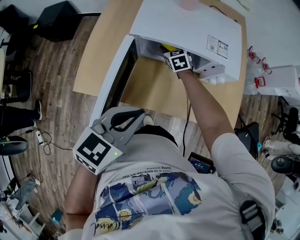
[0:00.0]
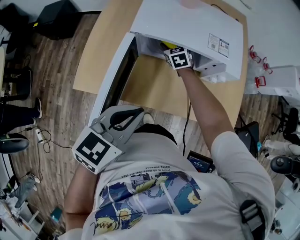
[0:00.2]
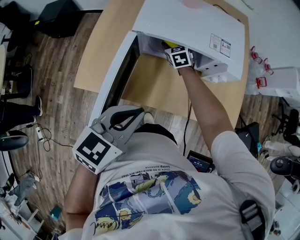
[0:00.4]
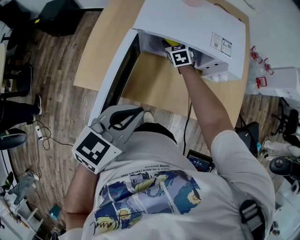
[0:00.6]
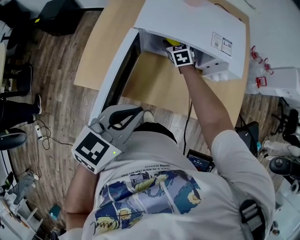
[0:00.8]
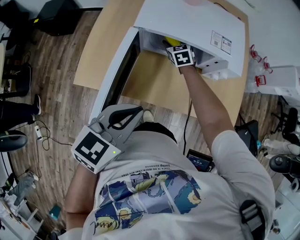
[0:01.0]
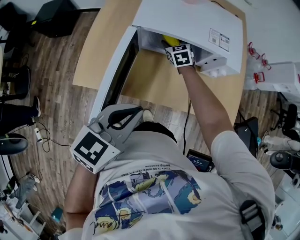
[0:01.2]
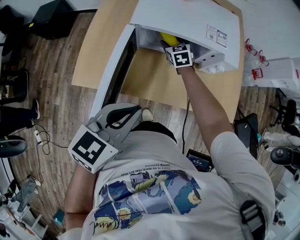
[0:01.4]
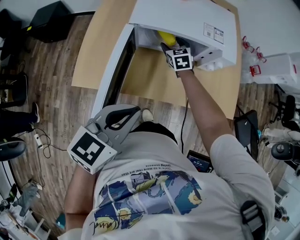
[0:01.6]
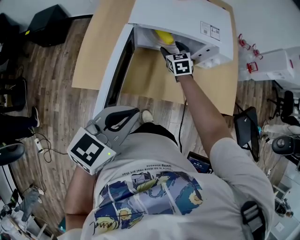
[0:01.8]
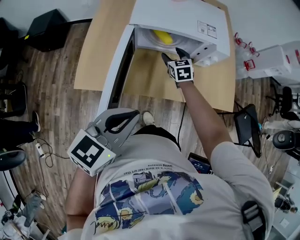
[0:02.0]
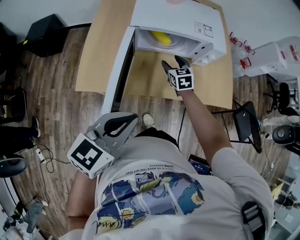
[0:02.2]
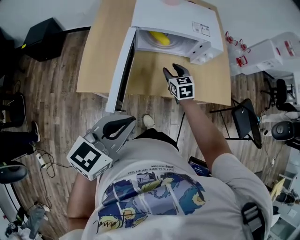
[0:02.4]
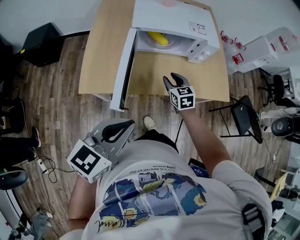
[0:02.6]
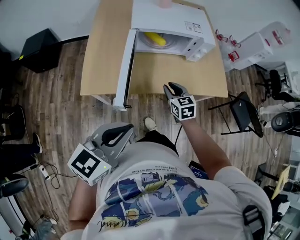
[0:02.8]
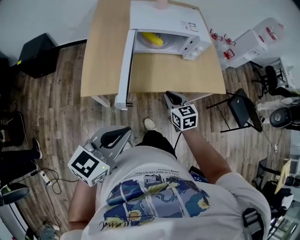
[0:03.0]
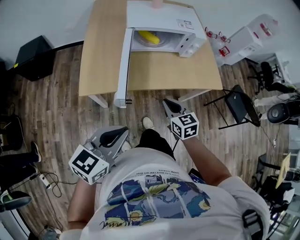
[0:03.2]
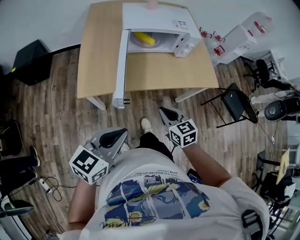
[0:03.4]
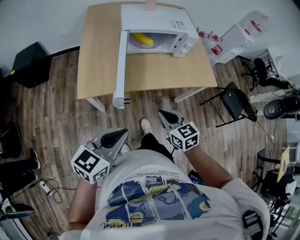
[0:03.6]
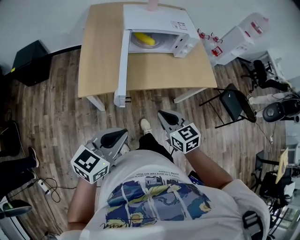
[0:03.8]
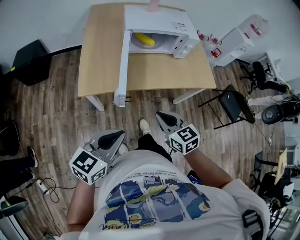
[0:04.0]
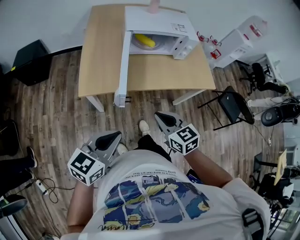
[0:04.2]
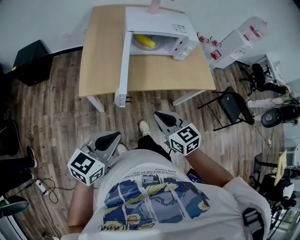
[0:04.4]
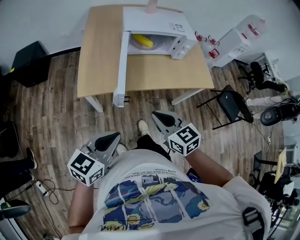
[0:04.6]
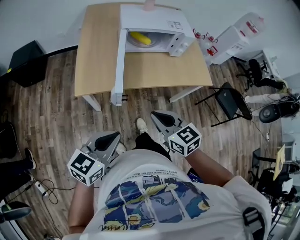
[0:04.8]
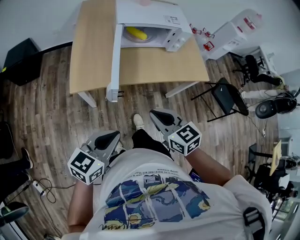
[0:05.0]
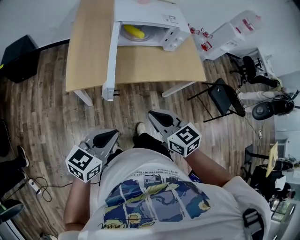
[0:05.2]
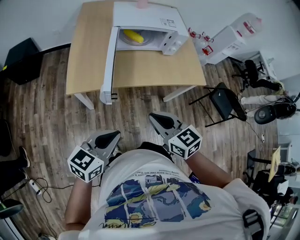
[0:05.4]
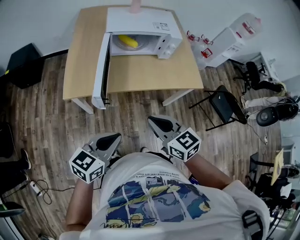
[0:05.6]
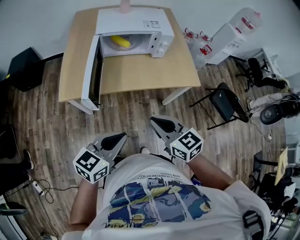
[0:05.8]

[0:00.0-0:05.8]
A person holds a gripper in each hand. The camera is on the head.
0:00.0 to 0:01.4: The grippers make only small movements.
0:01.4 to 0:02.8: The left gripper moves backward, about 15 cm. Meanwhile the right gripper moves backward, some 30 cm, and closes its fingers.
0:02.8 to 0:04.4: The left gripper heads backward, downward and to the left, covering approximately 10 cm. Meanwhile the right gripper is displaced backward and upward by roughly 25 cm.
0:04.4 to 0:05.8: The two grippers go approximately 15 cm to the right.

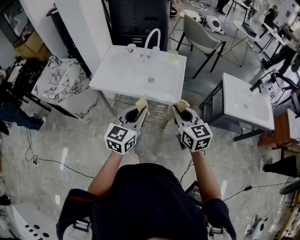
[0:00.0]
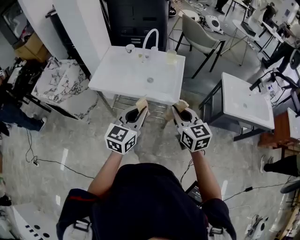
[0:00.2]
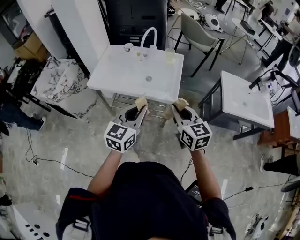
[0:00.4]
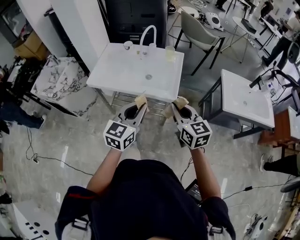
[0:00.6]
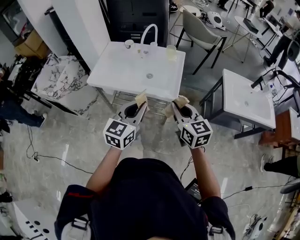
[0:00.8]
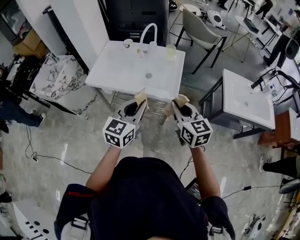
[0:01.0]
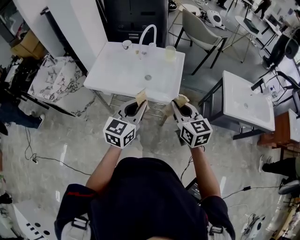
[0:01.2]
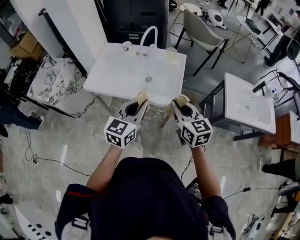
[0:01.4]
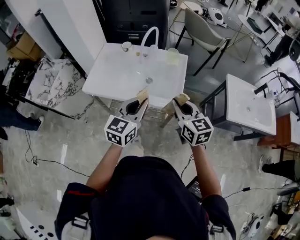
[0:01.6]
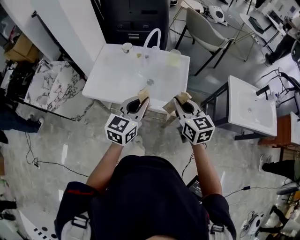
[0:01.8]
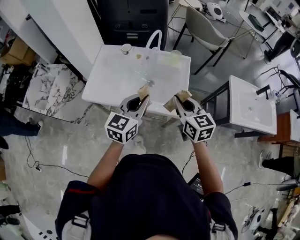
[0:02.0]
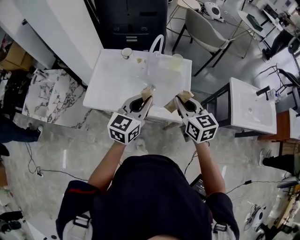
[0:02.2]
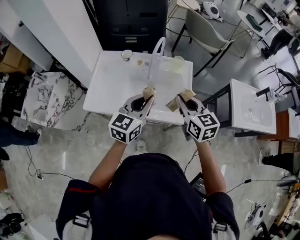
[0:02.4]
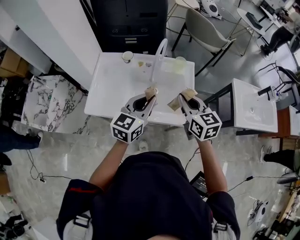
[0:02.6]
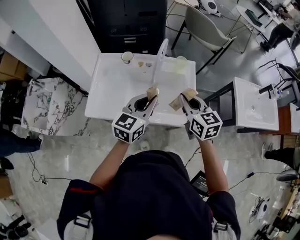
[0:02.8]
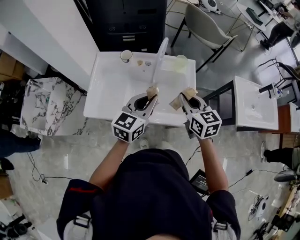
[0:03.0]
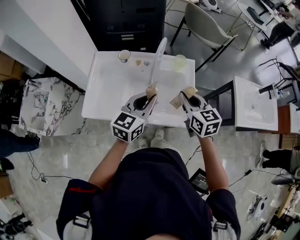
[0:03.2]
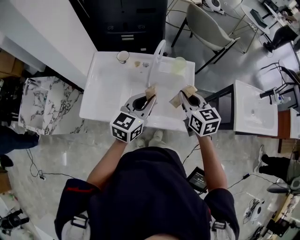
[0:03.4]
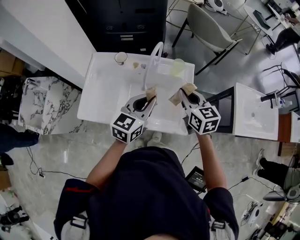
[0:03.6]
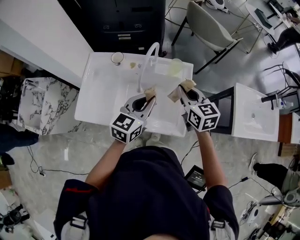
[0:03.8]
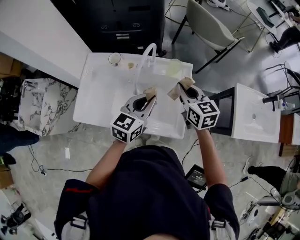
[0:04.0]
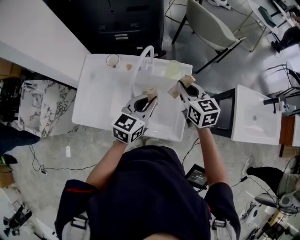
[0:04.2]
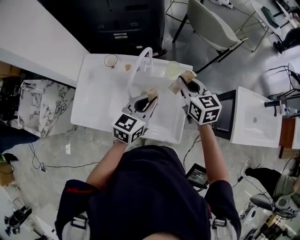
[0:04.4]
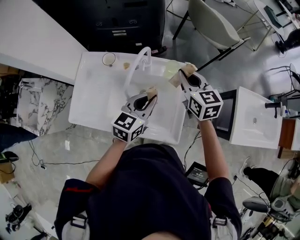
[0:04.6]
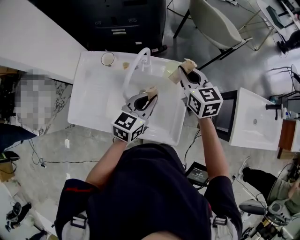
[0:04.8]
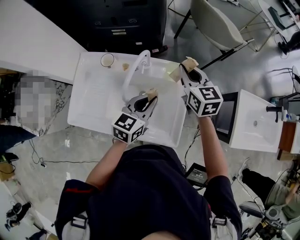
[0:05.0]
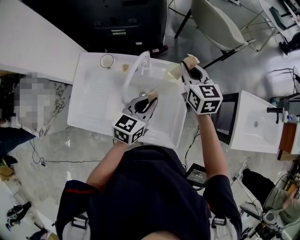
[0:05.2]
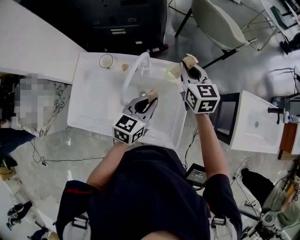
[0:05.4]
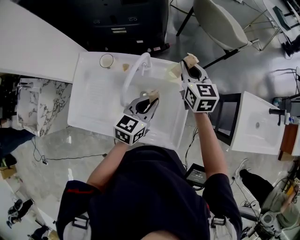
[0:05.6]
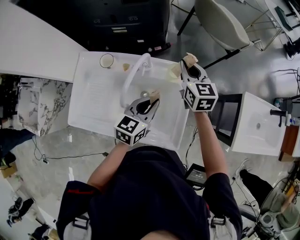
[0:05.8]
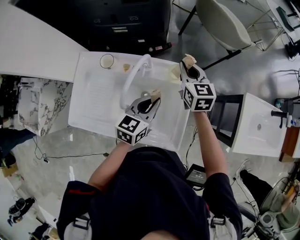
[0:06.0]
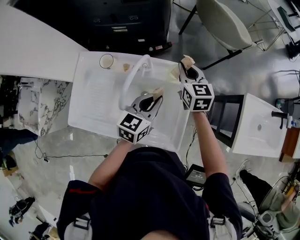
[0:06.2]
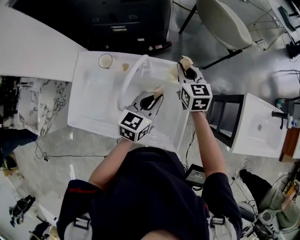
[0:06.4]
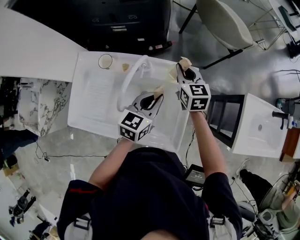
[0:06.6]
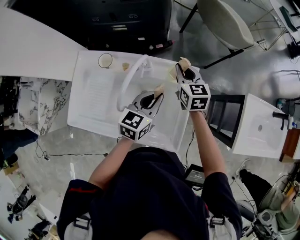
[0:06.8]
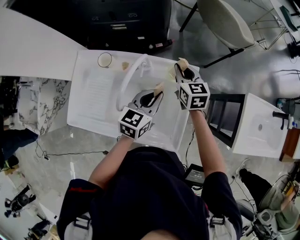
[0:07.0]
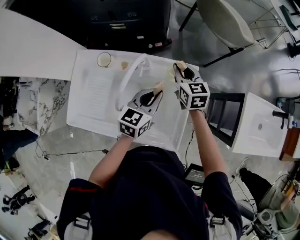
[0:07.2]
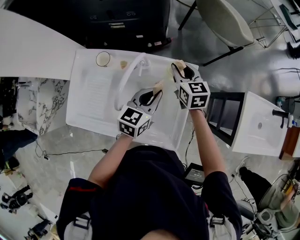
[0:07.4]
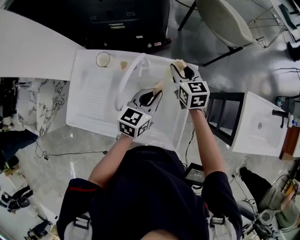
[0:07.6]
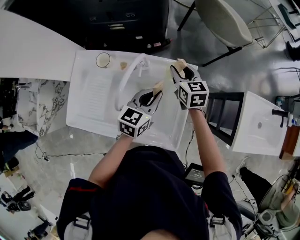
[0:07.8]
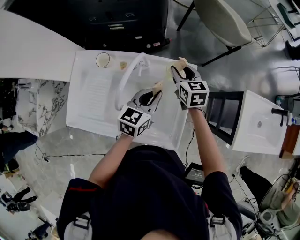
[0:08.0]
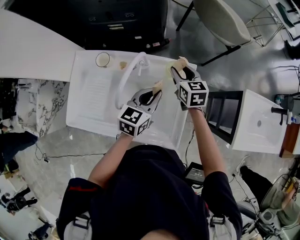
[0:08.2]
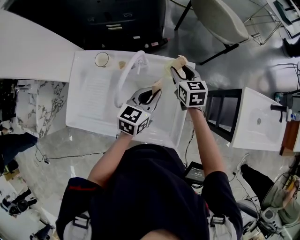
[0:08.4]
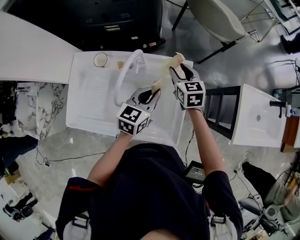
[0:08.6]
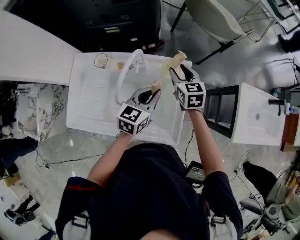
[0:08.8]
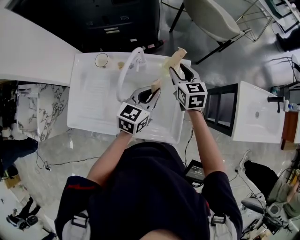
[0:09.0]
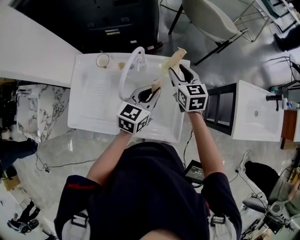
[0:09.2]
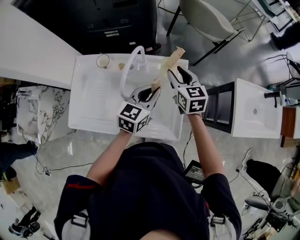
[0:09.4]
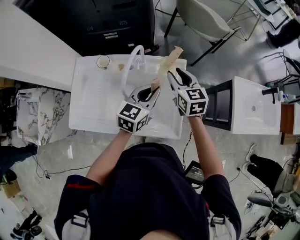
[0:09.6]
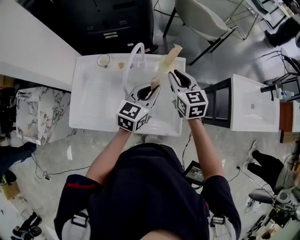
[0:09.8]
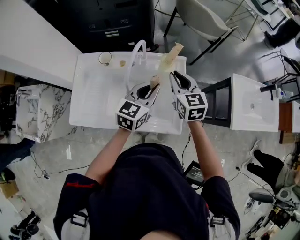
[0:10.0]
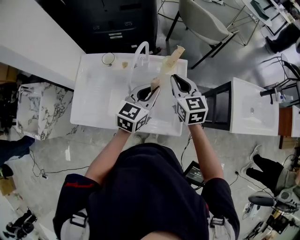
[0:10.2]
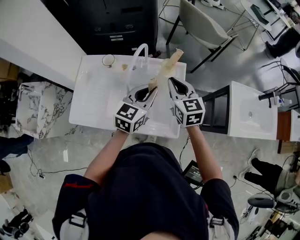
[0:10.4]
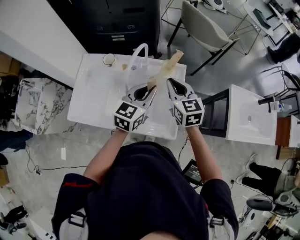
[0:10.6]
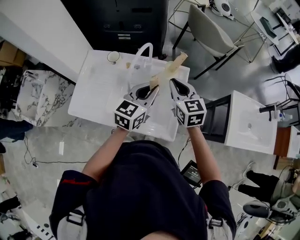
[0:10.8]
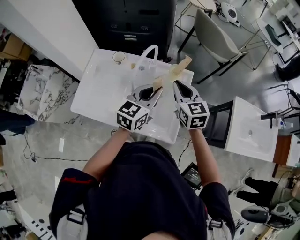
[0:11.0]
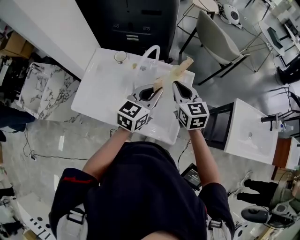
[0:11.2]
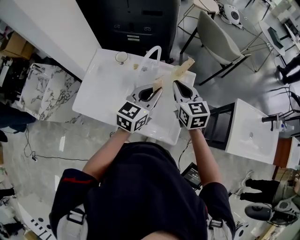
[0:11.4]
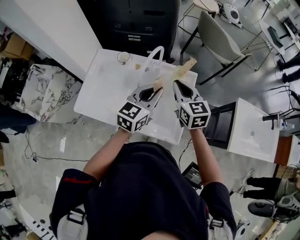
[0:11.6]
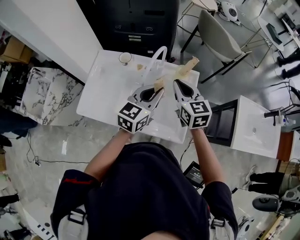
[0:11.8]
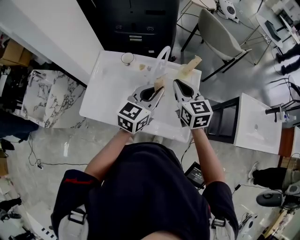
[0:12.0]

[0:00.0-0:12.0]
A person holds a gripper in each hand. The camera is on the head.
0:00.0 to 0:01.6: Both grippers travel together forward, about 10 cm.
0:01.6 to 0:03.0: The grippers both shift forward and to the left by about 20 cm.
0:03.0 to 0:04.4: The right gripper moves forward, some 20 cm; the left gripper goes approximately 15 cm forward, to the right and downward.
0:04.4 to 0:06.0: The left gripper goes approximately 10 cm downward and forward. Meanwhile the right gripper is displaced forward and downward by approximately 15 cm.
0:06.0 to 0:07.6: The right gripper moves downward, roughly 5 cm, and opens.
0:07.6 to 0:09.0: The right gripper shifts by roughly 5 cm.
0:09.0 to 0:10.4: The right gripper is displaced backward and upward by about 15 cm, and closes. Meanwhile the left gripper goes roughly 10 cm upward and backward.
0:10.4 to 0:12.0: The two grippers go about 5 cm to the left.

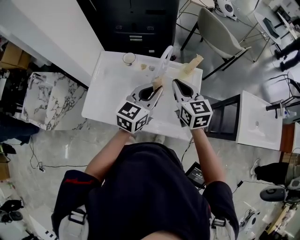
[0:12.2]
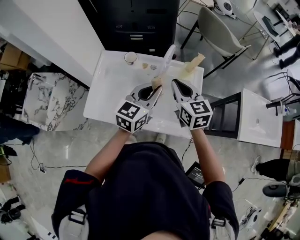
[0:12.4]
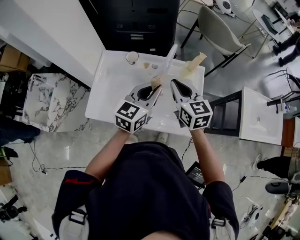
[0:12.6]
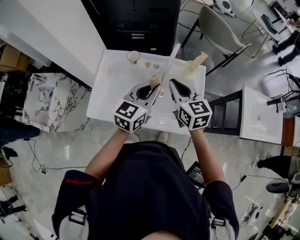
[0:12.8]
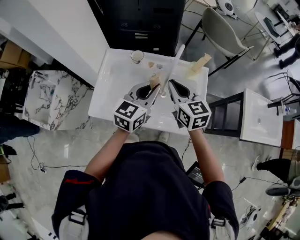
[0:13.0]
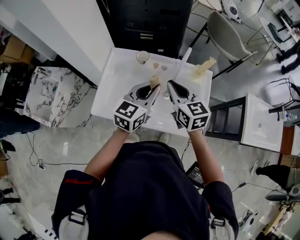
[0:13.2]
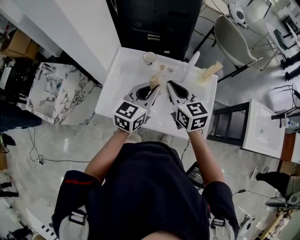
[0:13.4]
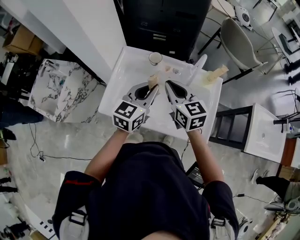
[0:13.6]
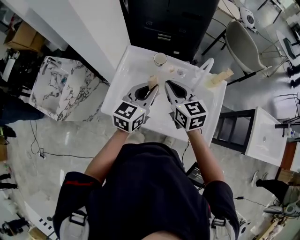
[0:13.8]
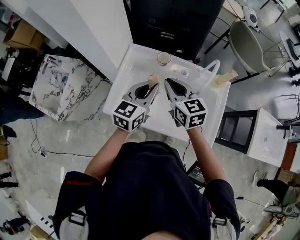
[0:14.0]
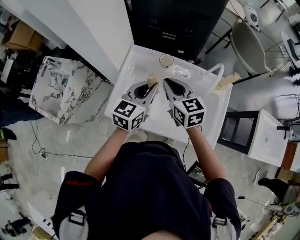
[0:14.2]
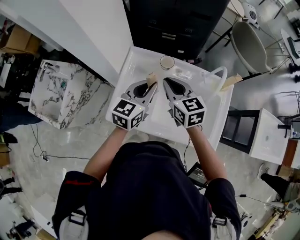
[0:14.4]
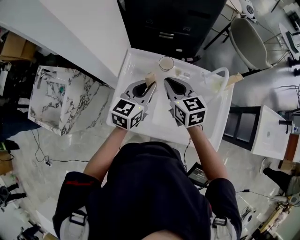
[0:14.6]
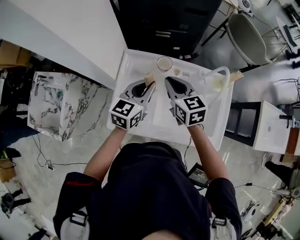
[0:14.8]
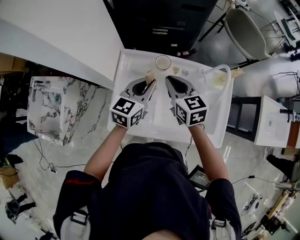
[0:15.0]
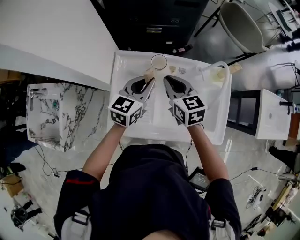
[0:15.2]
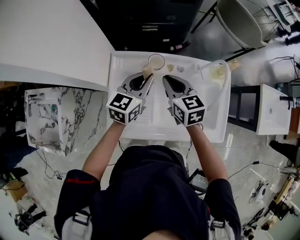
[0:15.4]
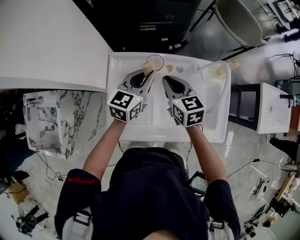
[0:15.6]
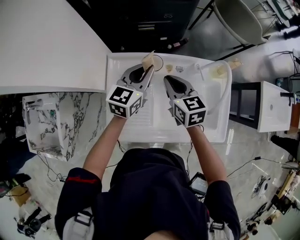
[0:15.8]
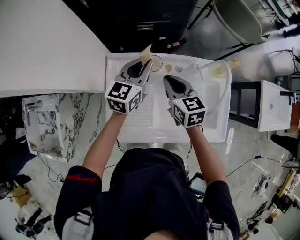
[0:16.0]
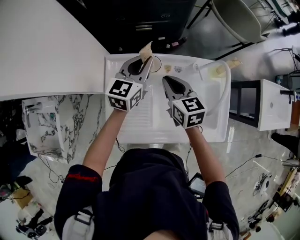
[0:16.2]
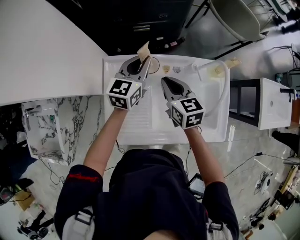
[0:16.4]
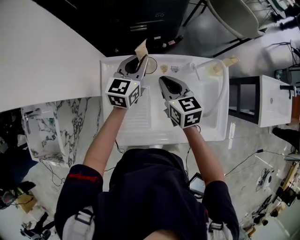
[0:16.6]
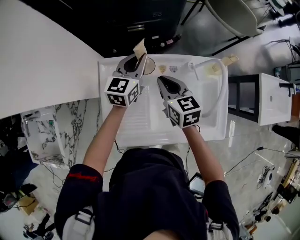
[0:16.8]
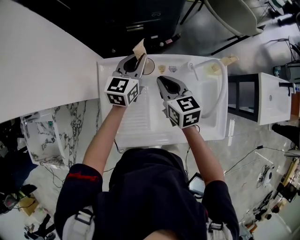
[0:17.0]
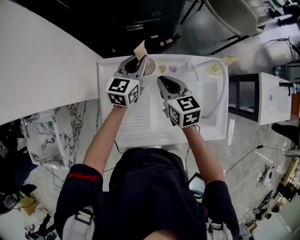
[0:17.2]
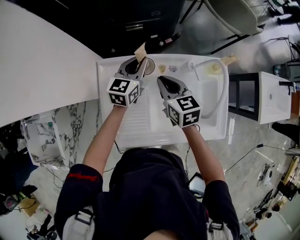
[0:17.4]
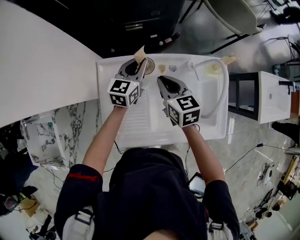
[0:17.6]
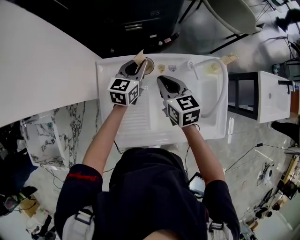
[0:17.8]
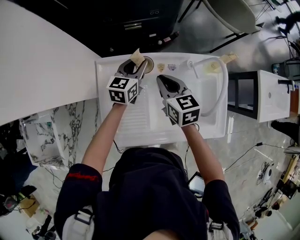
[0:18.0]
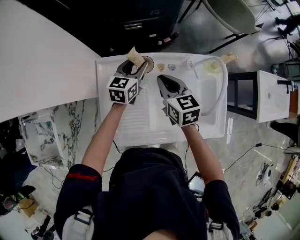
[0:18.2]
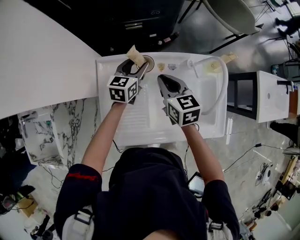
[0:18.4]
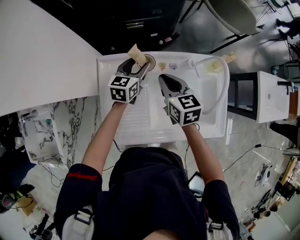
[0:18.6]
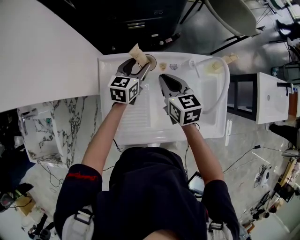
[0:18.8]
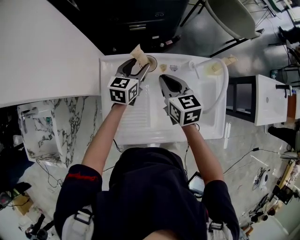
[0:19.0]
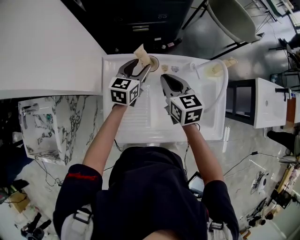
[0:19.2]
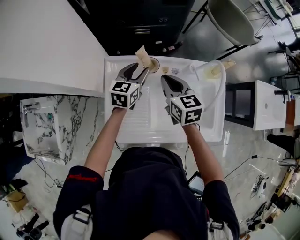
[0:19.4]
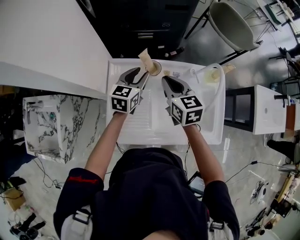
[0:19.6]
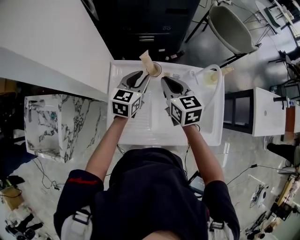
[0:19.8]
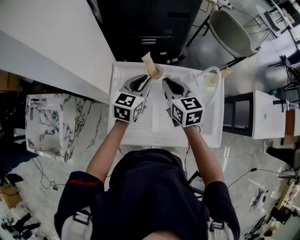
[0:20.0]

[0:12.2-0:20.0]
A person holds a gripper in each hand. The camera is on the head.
0:12.2 to 0:13.8: Both grippers move to the left, approximately 20 cm.
0:13.8 to 0:15.4: The two grippers go approximately 15 cm forward and downward.
0:15.4 to 0:16.8: The left gripper heads forward, covering about 10 cm.
0:16.8 to 0:18.4: The left gripper is displaced downward by approximately 10 cm, and opens up.
0:18.4 to 0:20.0: The right gripper goes approximately 10 cm upward; the left gripper goes about 15 cm upward and backward, and closes up.
